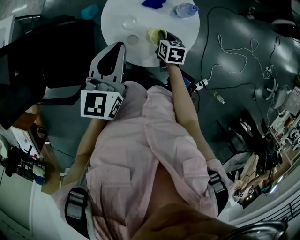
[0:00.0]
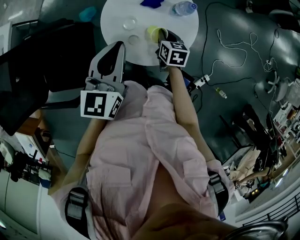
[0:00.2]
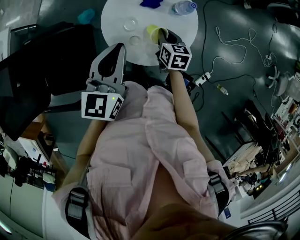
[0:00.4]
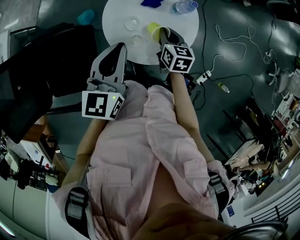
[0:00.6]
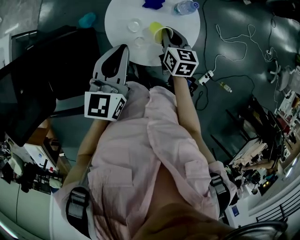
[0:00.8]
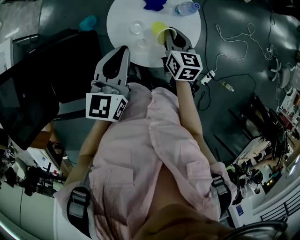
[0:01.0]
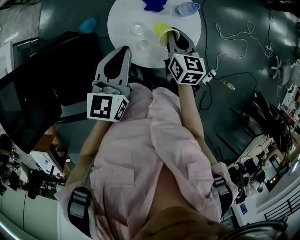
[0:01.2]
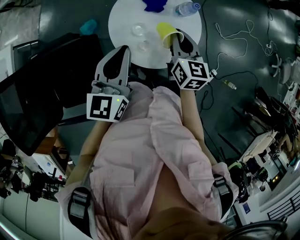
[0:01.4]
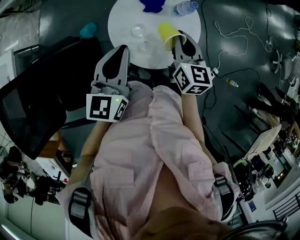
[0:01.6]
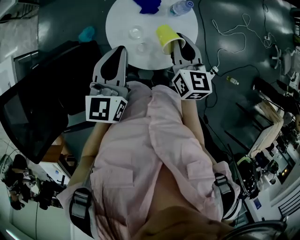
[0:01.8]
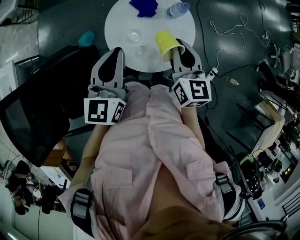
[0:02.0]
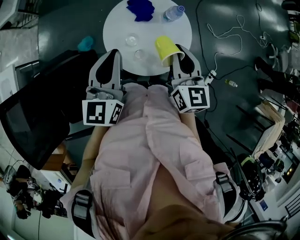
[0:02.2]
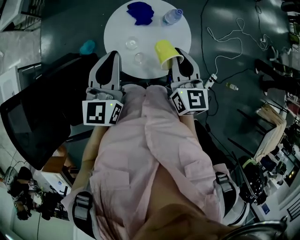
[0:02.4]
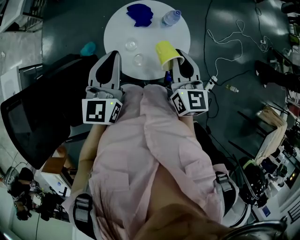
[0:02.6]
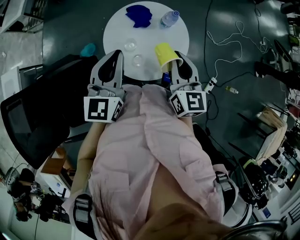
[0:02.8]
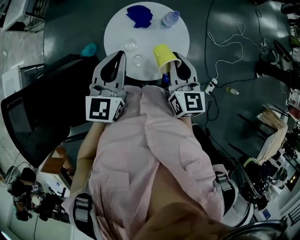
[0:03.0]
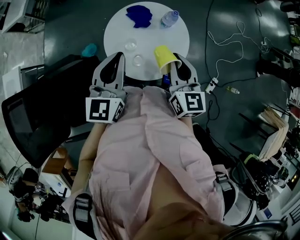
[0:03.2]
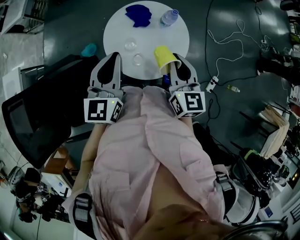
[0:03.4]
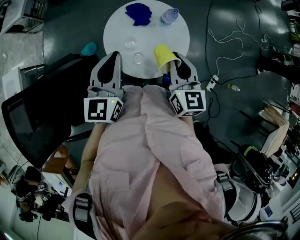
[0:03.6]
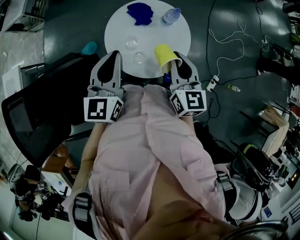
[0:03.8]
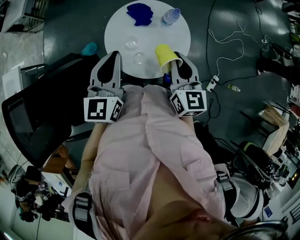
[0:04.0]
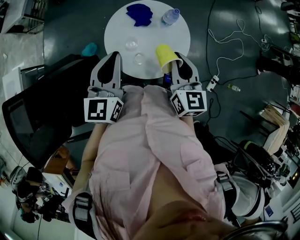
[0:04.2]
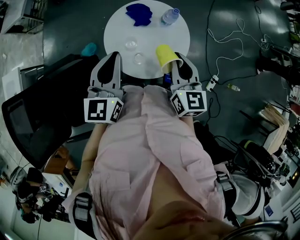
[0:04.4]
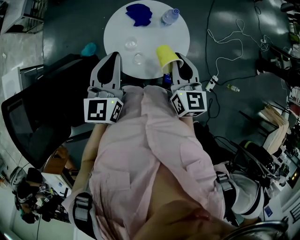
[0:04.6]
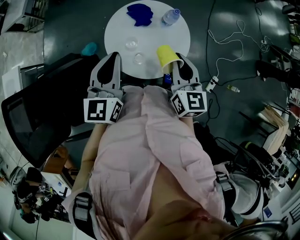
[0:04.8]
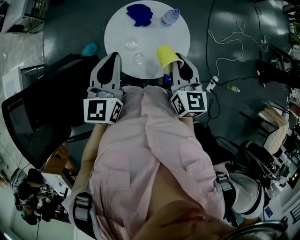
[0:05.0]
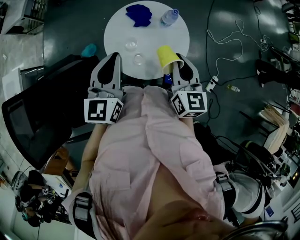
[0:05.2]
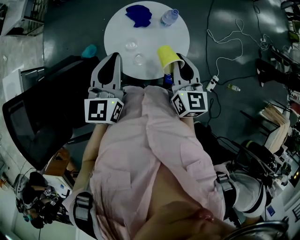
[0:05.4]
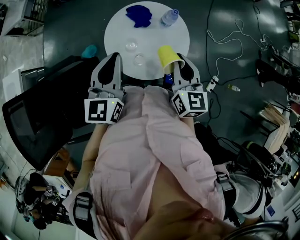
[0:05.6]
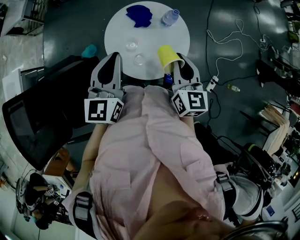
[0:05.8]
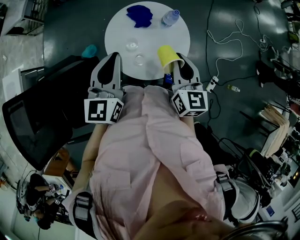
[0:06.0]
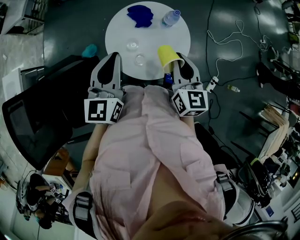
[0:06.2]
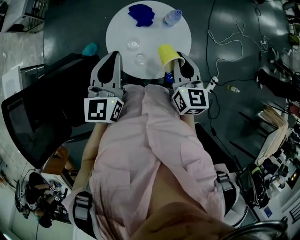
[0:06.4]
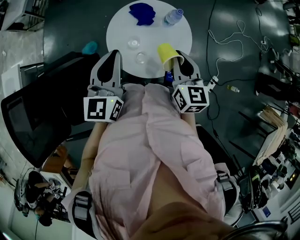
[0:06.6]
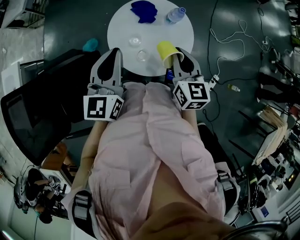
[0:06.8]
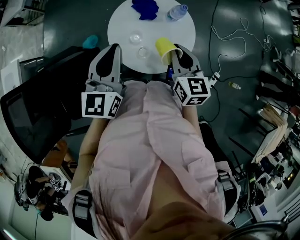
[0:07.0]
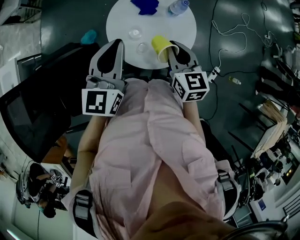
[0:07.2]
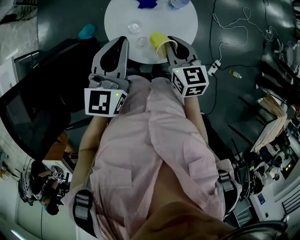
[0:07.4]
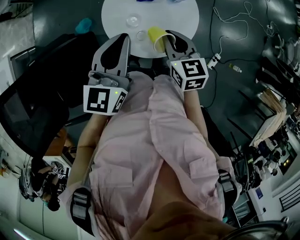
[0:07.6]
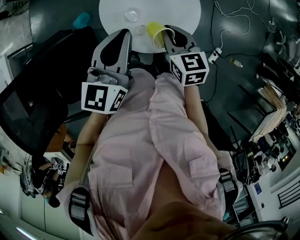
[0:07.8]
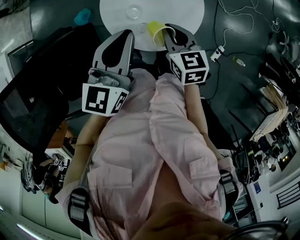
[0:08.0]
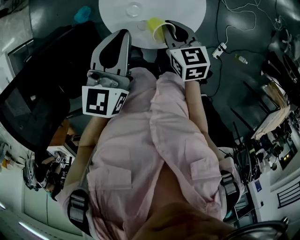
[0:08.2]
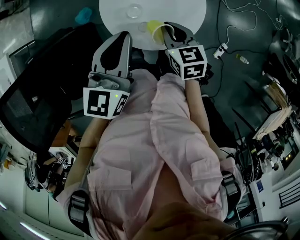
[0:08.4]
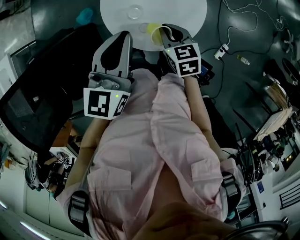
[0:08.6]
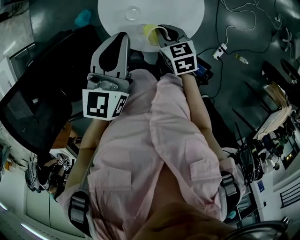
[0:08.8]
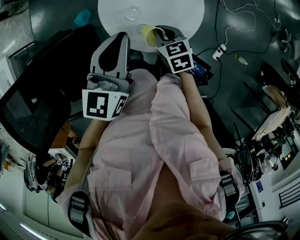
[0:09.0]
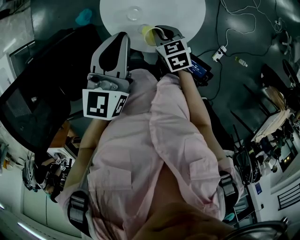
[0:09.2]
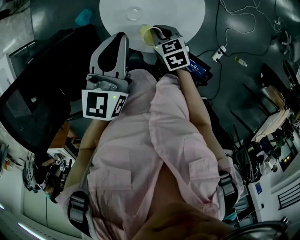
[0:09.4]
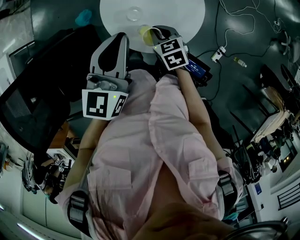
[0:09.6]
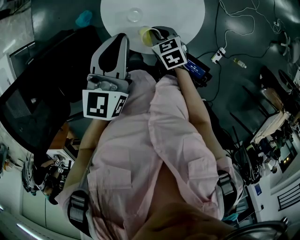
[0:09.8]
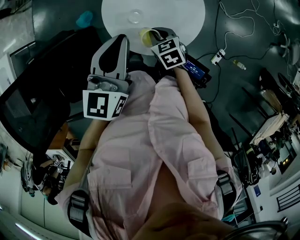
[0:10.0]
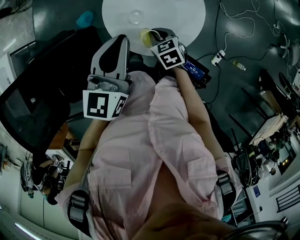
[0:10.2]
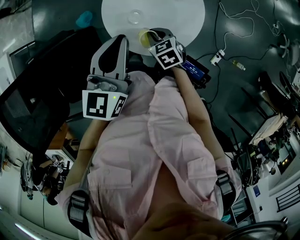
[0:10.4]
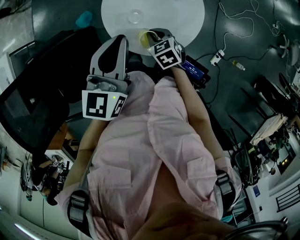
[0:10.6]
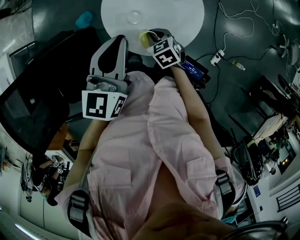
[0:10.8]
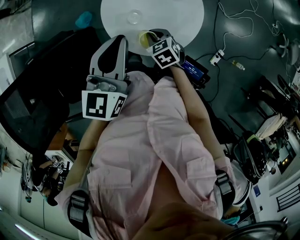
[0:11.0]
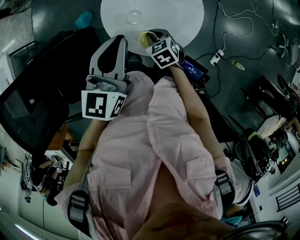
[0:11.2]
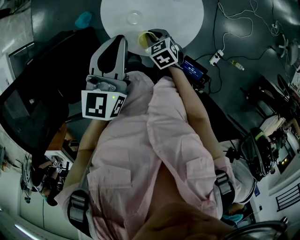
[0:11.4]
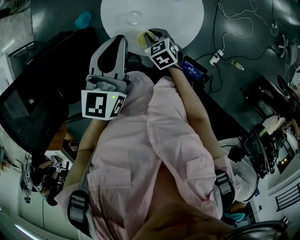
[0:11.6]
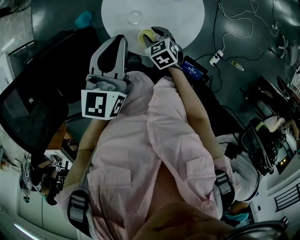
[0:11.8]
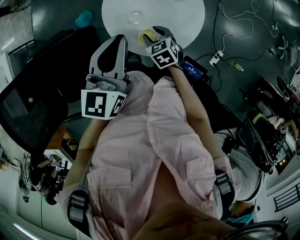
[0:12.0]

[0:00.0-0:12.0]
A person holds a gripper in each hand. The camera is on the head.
0:00.0 to 0:01.6: The left gripper travels to the left by roughly 5 cm. Meanwhile the right gripper heads upward, covering some 20 cm, and rotates some 30 degrees.
0:01.6 to 0:03.0: The right gripper moves upward and backward, about 10 cm.
0:03.0 to 0:04.4: There are only small adjustments of the grippers.
0:04.4 to 0:06.0: Neither gripper changes place.
0:06.0 to 0:07.6: The right gripper shifts roughly 10 cm downward, and turns by some 20 degrees.
0:07.6 to 0:09.0: The right gripper goes approximately 10 cm downward.
0:09.0 to 0:10.4: There are only small adjustments of the grippers.
0:10.4 to 0:12.0: The right gripper opens up.

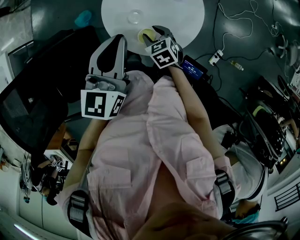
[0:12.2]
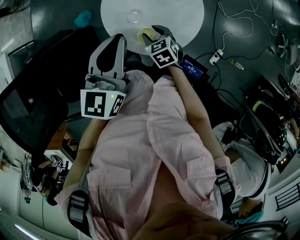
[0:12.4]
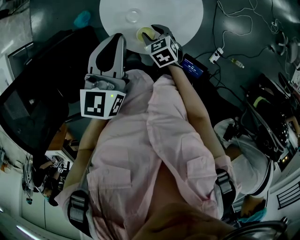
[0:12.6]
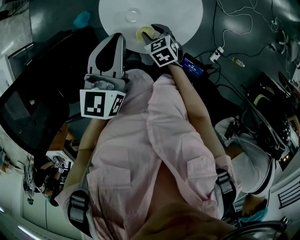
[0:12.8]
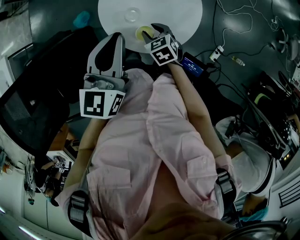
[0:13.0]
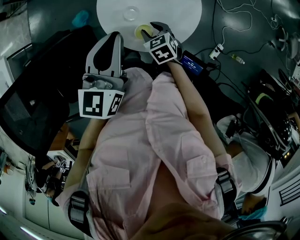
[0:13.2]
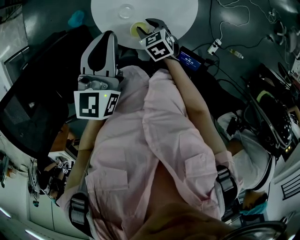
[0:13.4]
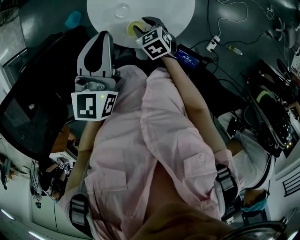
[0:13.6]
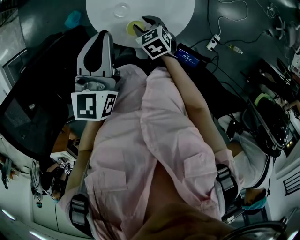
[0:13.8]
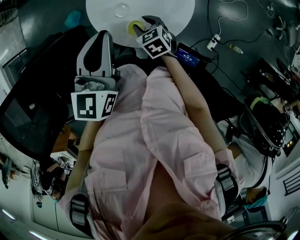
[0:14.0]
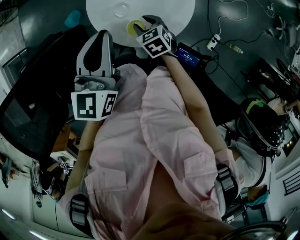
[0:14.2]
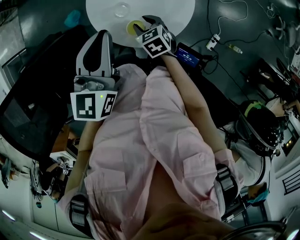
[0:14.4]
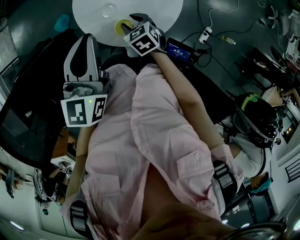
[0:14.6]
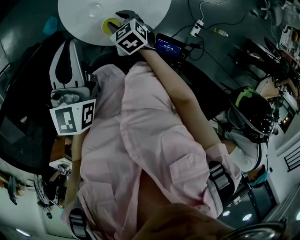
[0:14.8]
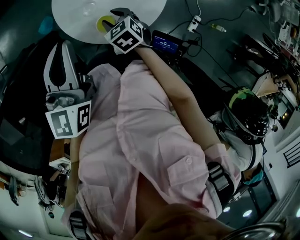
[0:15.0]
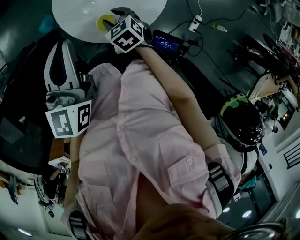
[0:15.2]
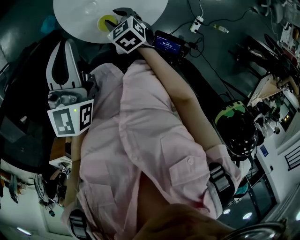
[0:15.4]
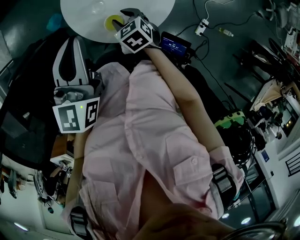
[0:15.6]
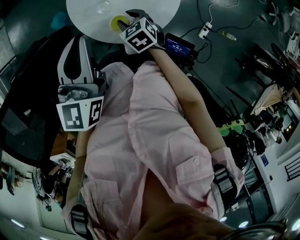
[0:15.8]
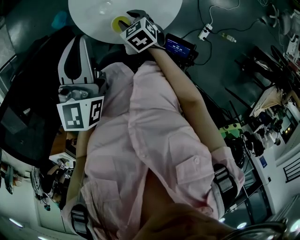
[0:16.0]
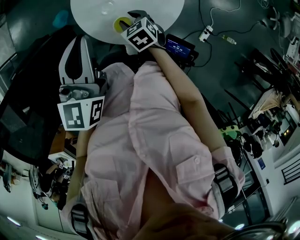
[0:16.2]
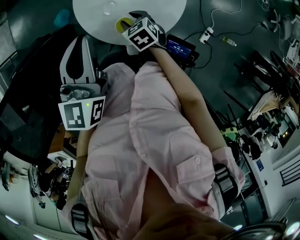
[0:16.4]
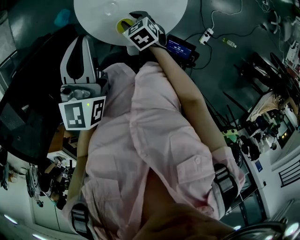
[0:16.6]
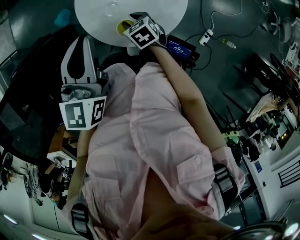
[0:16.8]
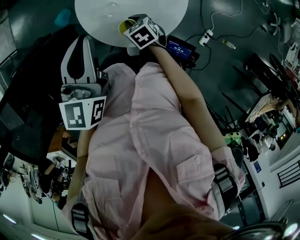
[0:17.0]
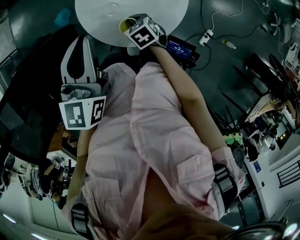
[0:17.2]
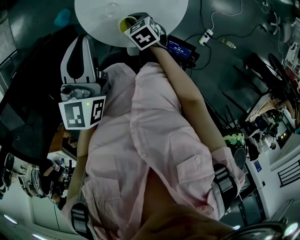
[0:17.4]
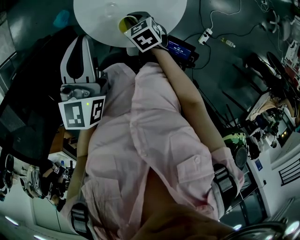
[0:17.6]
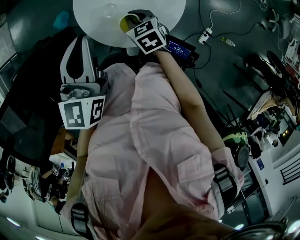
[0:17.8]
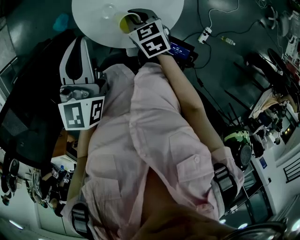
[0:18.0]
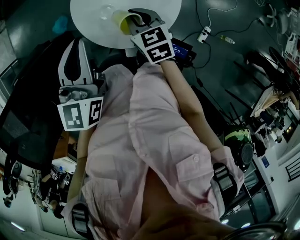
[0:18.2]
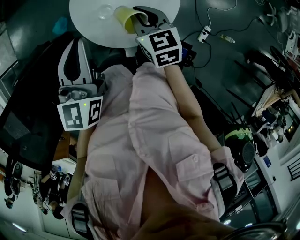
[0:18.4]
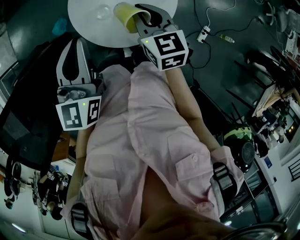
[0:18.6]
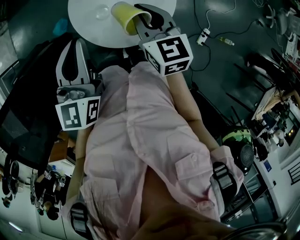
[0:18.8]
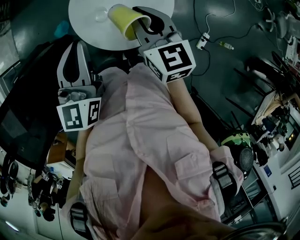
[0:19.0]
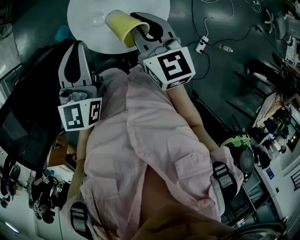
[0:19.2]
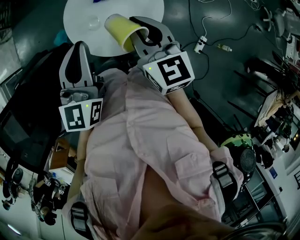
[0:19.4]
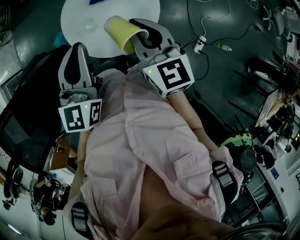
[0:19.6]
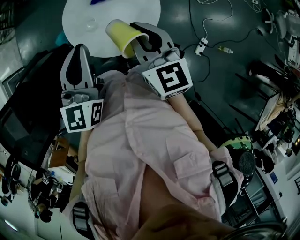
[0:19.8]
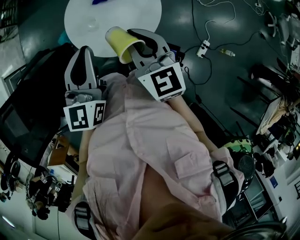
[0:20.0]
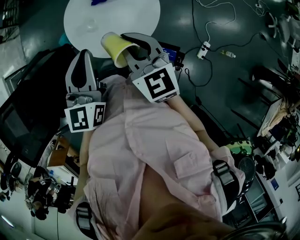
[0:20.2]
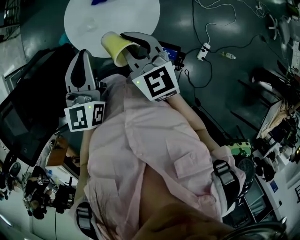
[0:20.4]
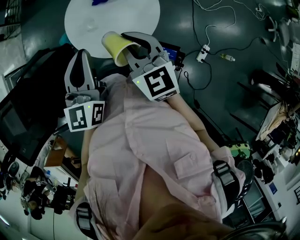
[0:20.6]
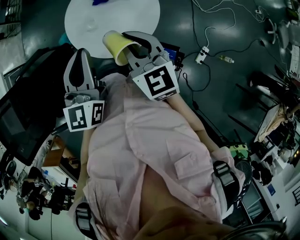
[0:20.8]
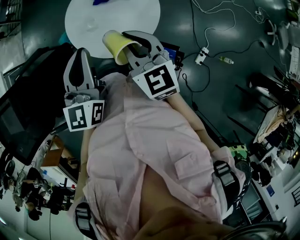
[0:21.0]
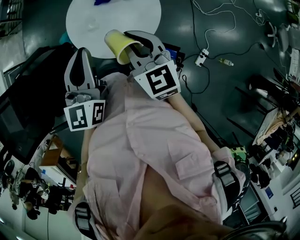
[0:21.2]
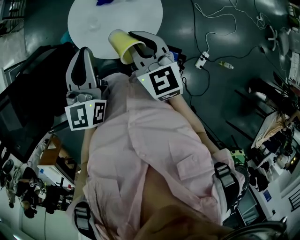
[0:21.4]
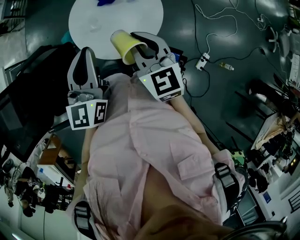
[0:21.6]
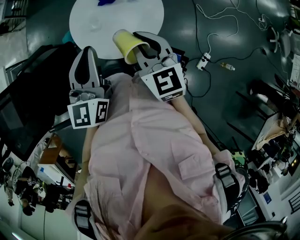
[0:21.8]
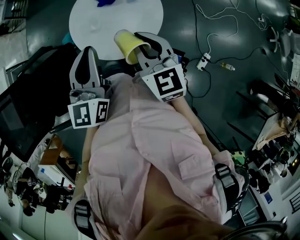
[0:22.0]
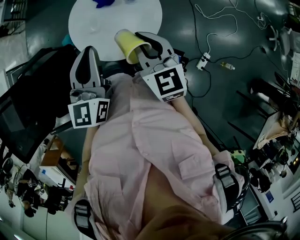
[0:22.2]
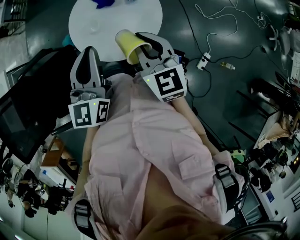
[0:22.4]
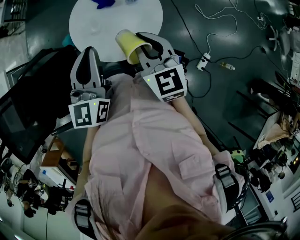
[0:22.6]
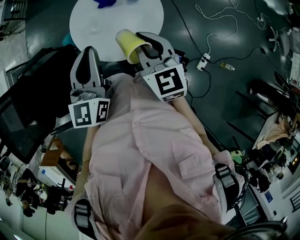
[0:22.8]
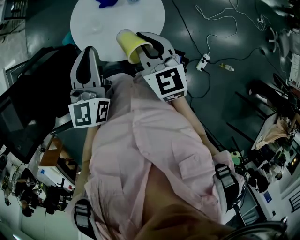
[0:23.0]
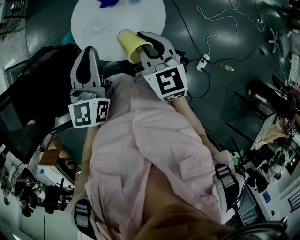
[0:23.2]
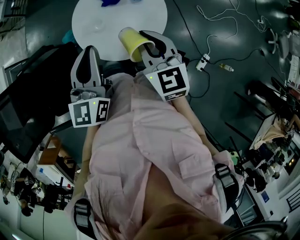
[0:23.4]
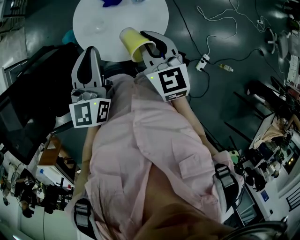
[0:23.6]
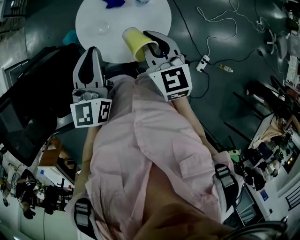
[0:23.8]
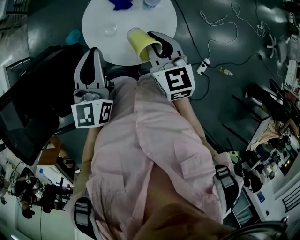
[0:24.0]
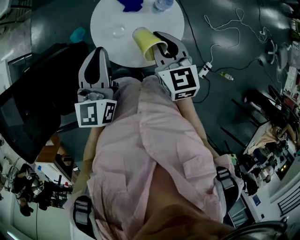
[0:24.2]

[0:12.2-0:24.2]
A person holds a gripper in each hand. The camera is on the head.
0:12.2 to 0:13.8: Both grippers stay about where they are.
0:13.8 to 0:15.2: Both grippers stay put.
0:15.2 to 0:16.6: There are only small adjustments of the grippers.
0:16.6 to 0:18.2: The right gripper travels upward by approximately 10 cm, turns by about 20 degrees, and closes its fingers.
0:18.2 to 0:19.8: The right gripper moves upward and to the right, about 20 cm, and swivels approximately 30 degrees; the left gripper heads to the right, covering about 10 cm.
0:19.8 to 0:22.6: The grippers move only a little.
0:22.6 to 0:24.2: The left gripper goes some 10 cm to the left and forward, while the right gripper shifts about 5 cm forward.
